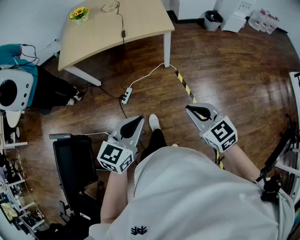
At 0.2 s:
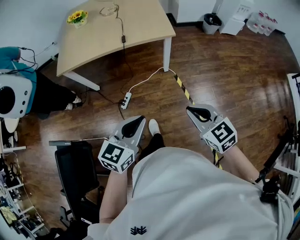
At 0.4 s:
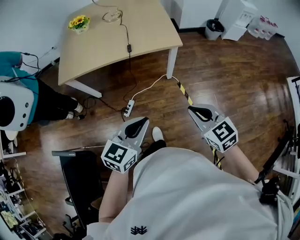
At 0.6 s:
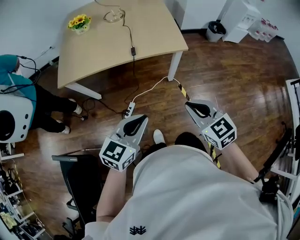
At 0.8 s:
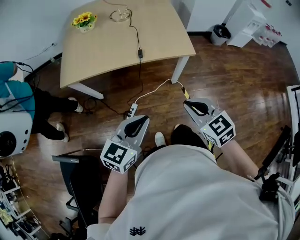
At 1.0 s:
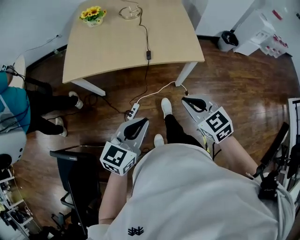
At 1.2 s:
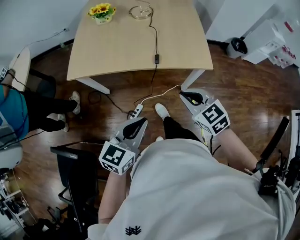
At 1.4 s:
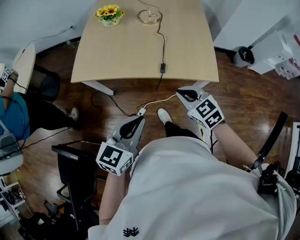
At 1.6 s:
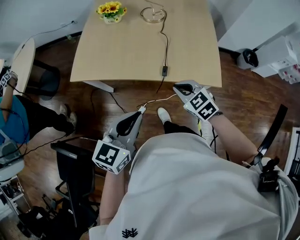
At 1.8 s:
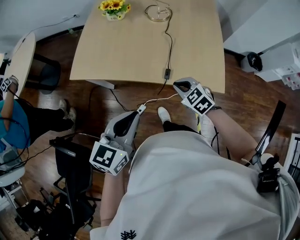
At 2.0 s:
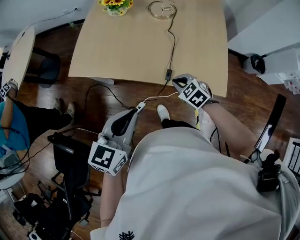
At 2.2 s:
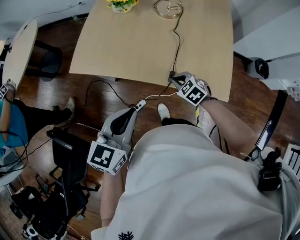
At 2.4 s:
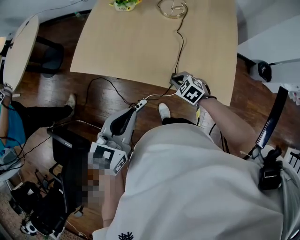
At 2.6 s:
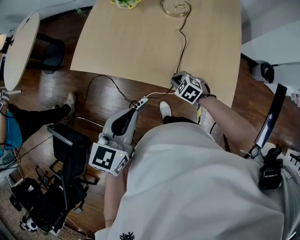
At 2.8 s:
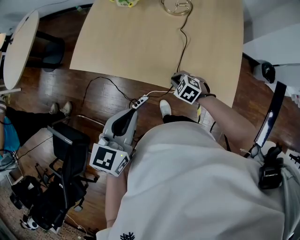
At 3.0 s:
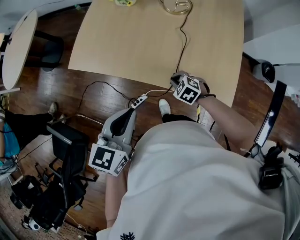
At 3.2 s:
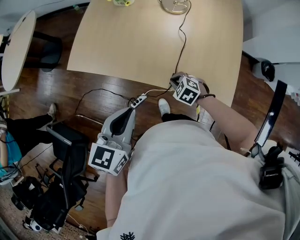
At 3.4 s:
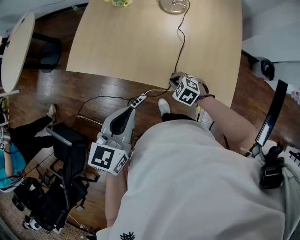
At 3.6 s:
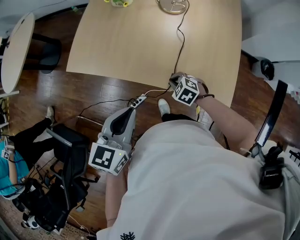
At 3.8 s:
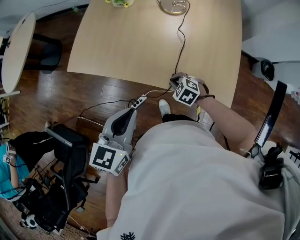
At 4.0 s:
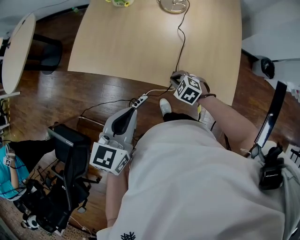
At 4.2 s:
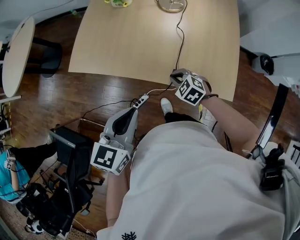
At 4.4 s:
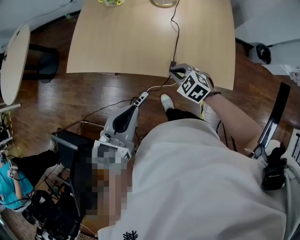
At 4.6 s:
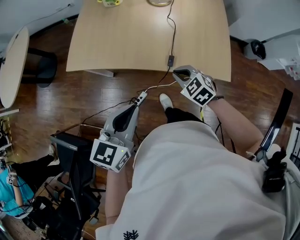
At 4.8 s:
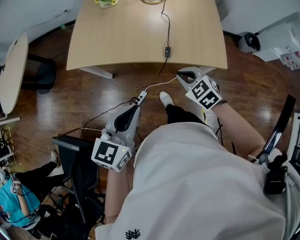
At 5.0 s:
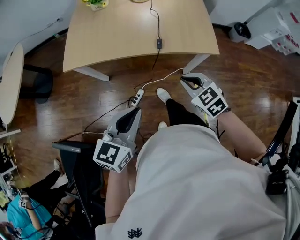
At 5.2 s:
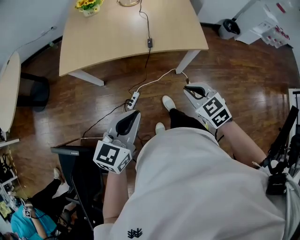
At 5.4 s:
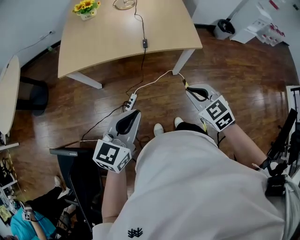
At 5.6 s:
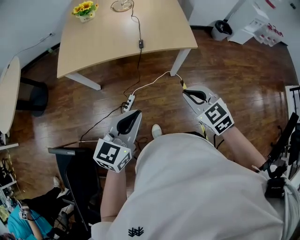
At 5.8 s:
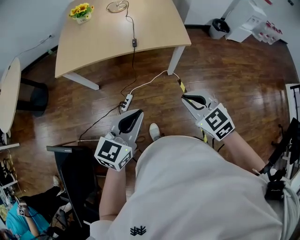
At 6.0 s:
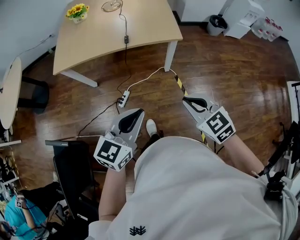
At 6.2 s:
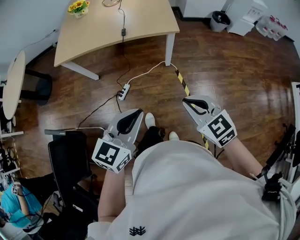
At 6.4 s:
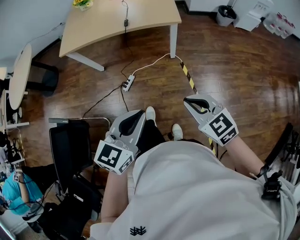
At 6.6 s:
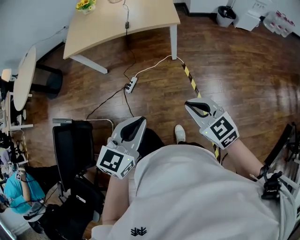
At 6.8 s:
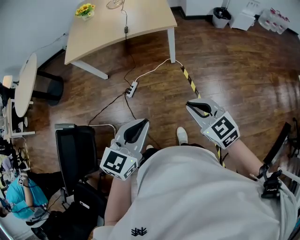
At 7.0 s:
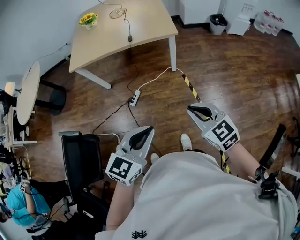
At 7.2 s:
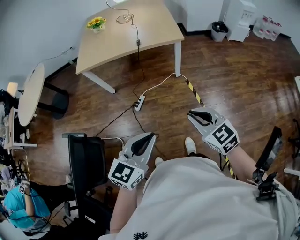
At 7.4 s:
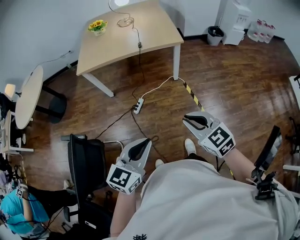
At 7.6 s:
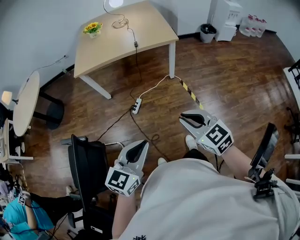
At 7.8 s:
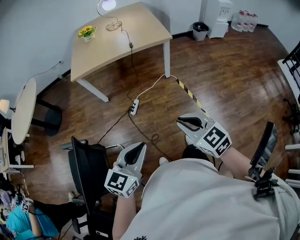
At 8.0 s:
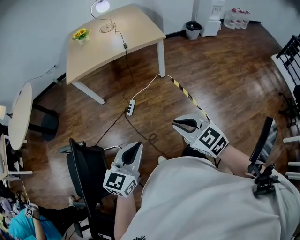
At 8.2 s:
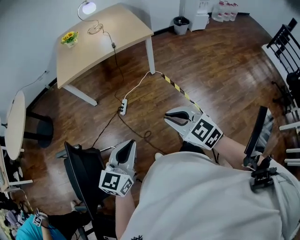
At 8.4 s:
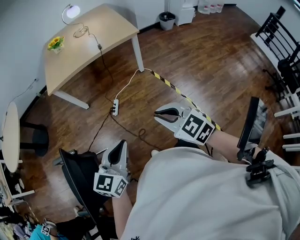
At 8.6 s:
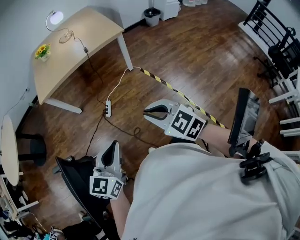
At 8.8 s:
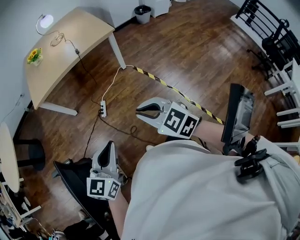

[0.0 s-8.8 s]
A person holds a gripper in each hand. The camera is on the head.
0.0 to 1.4 s: Both grippers move forward and to the left, some 40 cm.
1.4 to 3.0 s: The left gripper moves forward, roughly 15 cm, and turns by approximately 20 degrees, while the right gripper shifts approximately 25 cm downward and forward, and changes its angle by approximately 40 degrees.
3.0 to 4.4 s: The right gripper goes some 10 cm upward.
4.4 to 5.8 s: The right gripper is displaced backward and upward by approximately 40 cm, and turns by about 30 degrees. The left gripper is displaced backward by roughly 25 cm, and rotates some 30 degrees.
5.8 to 7.4 s: Both grippers travel together backward, about 30 cm.
7.4 to 8.8 s: The left gripper is displaced to the left by approximately 5 cm, while the right gripper goes about 10 cm to the left and backward.

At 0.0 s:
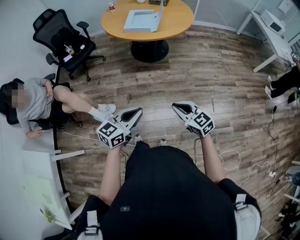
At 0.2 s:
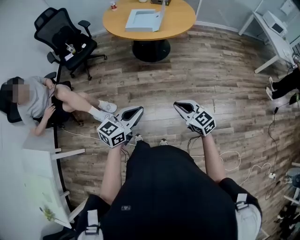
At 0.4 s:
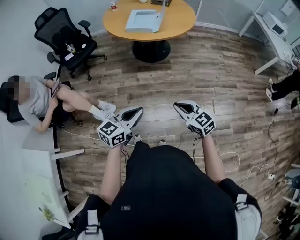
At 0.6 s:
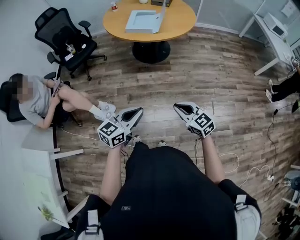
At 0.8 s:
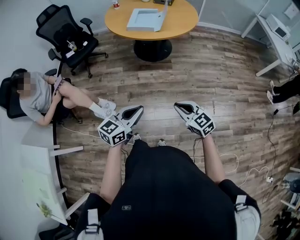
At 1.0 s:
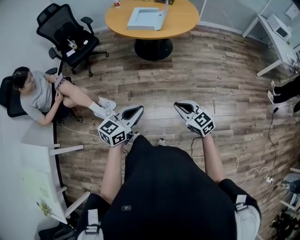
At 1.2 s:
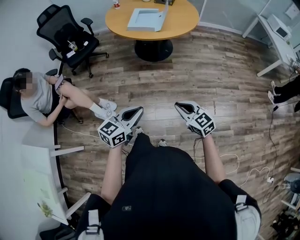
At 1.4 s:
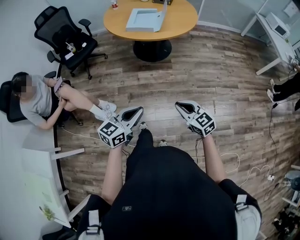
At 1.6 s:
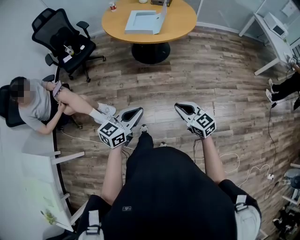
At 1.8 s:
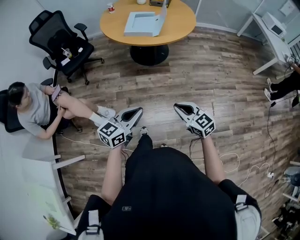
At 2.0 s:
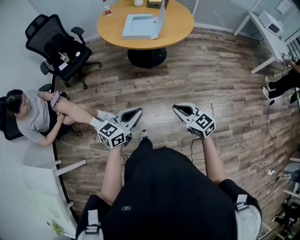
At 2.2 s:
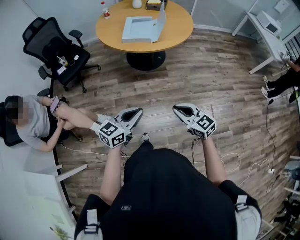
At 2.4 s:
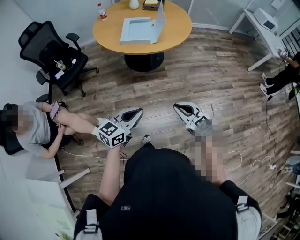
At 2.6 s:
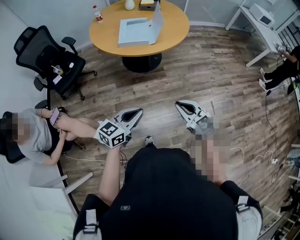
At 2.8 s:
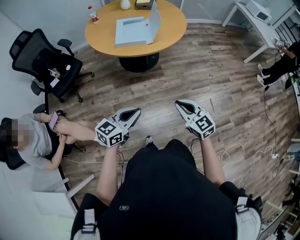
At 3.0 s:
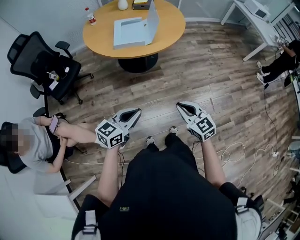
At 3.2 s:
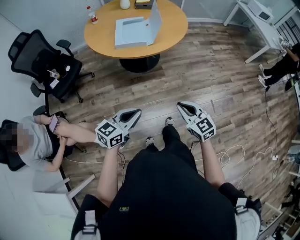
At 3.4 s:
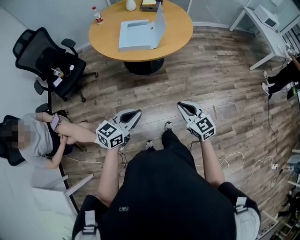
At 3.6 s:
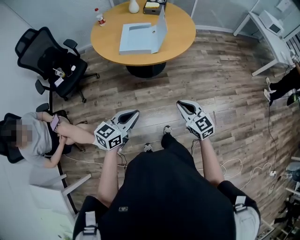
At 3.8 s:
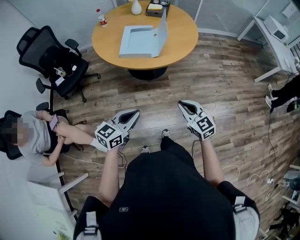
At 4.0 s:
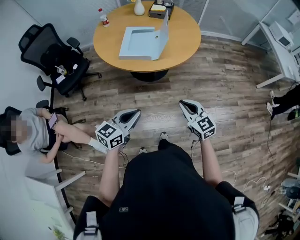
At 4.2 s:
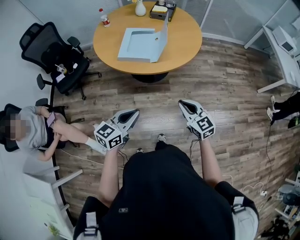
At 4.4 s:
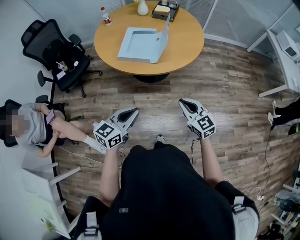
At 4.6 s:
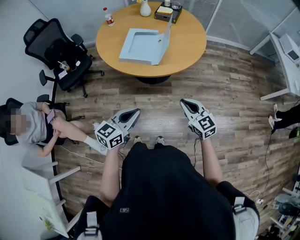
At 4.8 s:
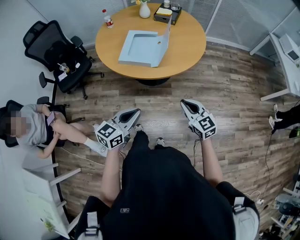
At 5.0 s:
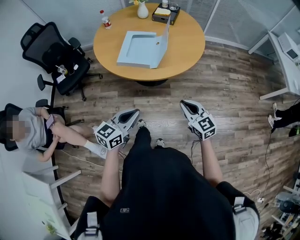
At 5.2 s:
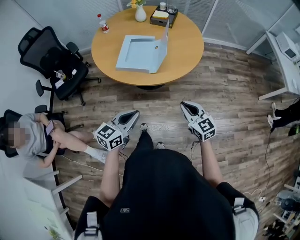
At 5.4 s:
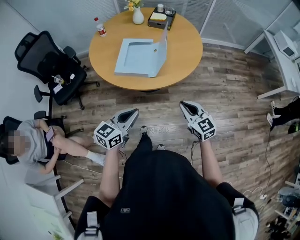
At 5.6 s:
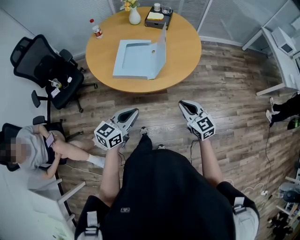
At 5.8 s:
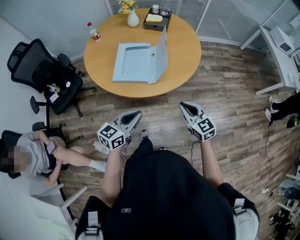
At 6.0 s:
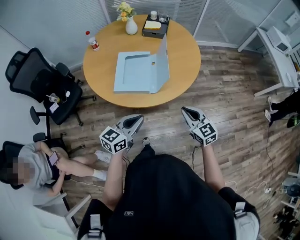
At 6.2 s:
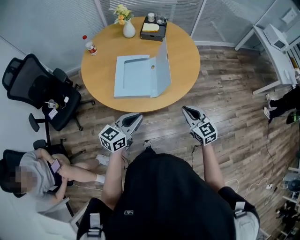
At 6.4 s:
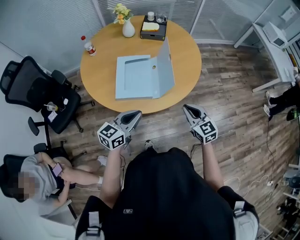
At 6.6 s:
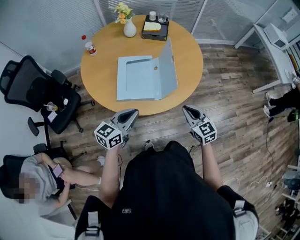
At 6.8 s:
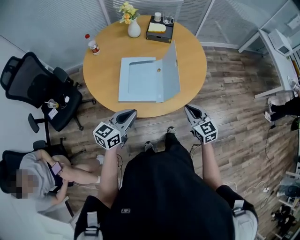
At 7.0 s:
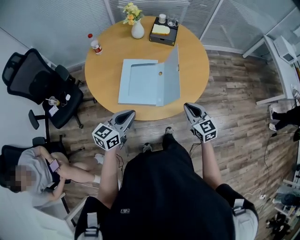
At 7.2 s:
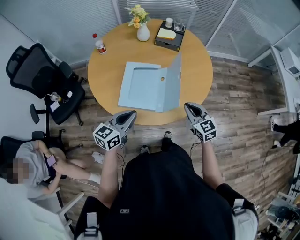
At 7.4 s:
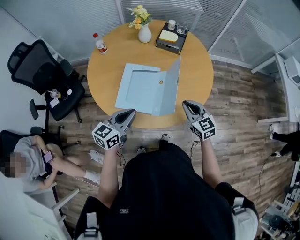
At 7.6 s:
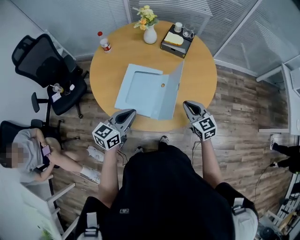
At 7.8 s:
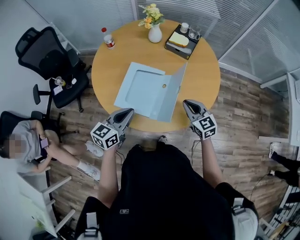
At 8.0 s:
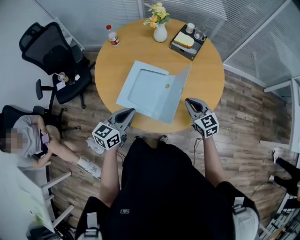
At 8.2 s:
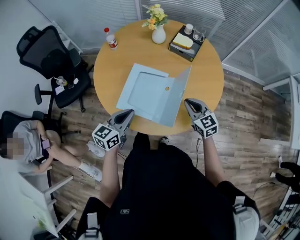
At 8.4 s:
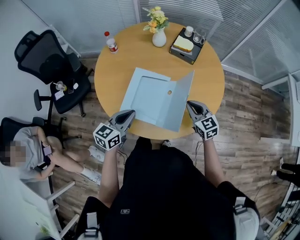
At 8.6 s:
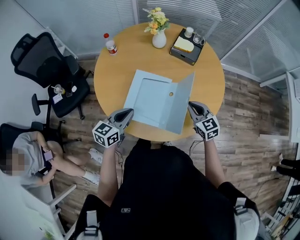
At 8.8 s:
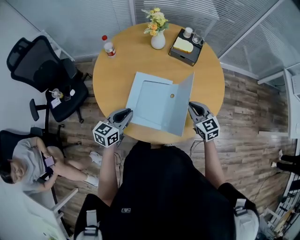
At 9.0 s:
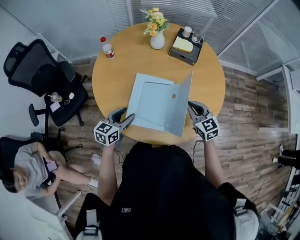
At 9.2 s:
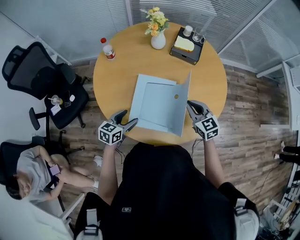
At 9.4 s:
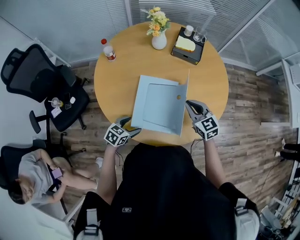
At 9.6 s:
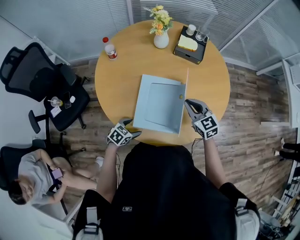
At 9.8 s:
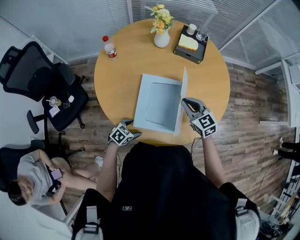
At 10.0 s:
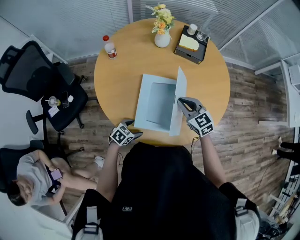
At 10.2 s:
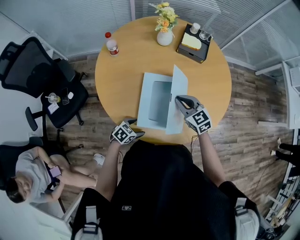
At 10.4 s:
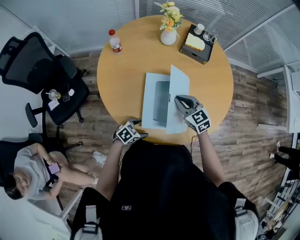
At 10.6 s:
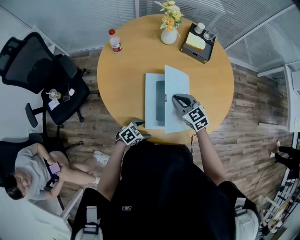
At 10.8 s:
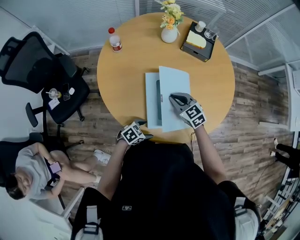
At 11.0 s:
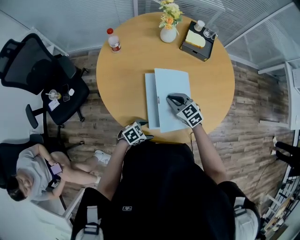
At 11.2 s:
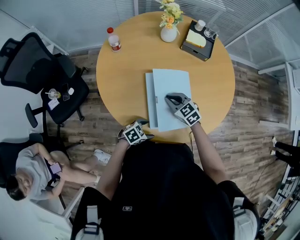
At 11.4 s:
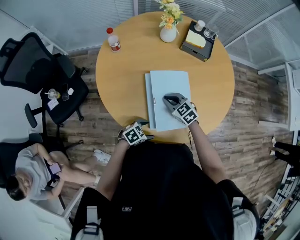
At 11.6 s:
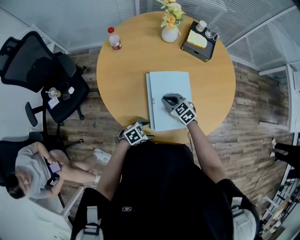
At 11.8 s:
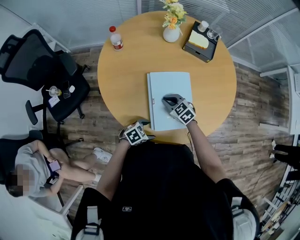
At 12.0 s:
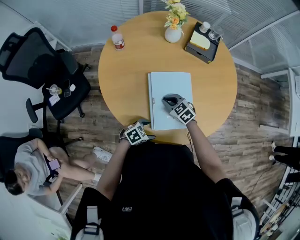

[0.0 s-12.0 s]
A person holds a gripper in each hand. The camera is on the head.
0.0 to 1.6 s: The left gripper is displaced forward by roughly 5 cm.
1.6 to 3.0 s: Both grippers move forward and to the left, approximately 15 cm.
3.0 to 4.4 s: The two grippers go some 20 cm forward and to the right.
4.4 to 6.0 s: Both grippers move forward, roughly 20 cm.
6.0 to 7.6 s: The grippers both shift forward by about 20 cm.
7.6 to 9.0 s: The right gripper is displaced forward and to the left by roughly 10 cm. The left gripper shifts some 20 cm to the left, forward and downward, and opens.
9.0 to 10.4 s: The right gripper is displaced to the left by approximately 15 cm. The left gripper goes approximately 20 cm downward and backward, turns by roughly 40 degrees, and opens.
10.4 to 12.0 s: The right gripper is displaced downward by about 10 cm.

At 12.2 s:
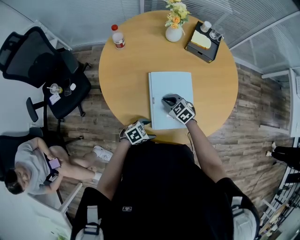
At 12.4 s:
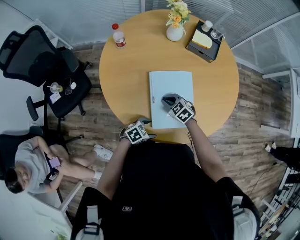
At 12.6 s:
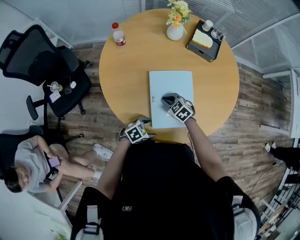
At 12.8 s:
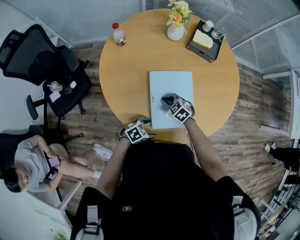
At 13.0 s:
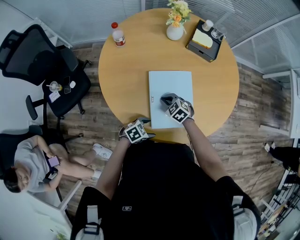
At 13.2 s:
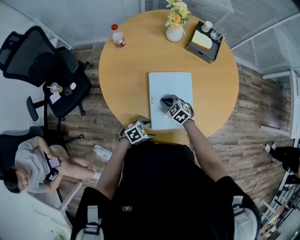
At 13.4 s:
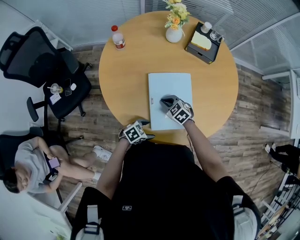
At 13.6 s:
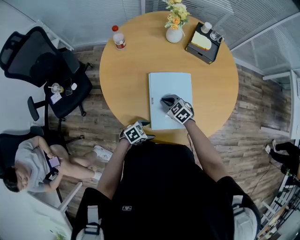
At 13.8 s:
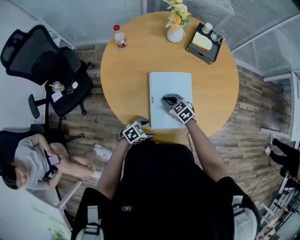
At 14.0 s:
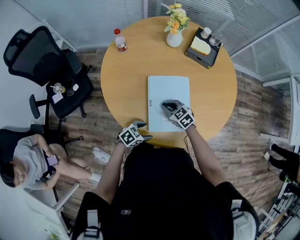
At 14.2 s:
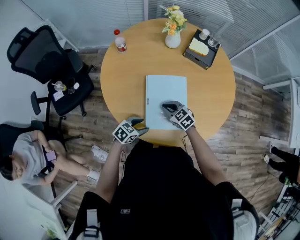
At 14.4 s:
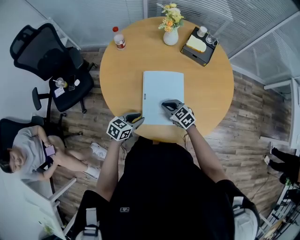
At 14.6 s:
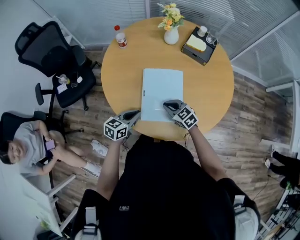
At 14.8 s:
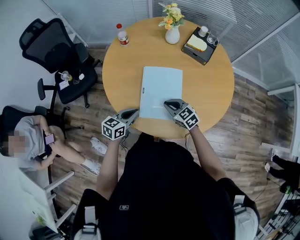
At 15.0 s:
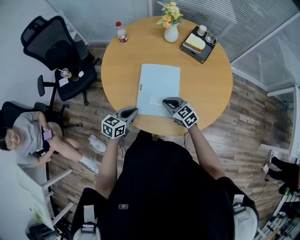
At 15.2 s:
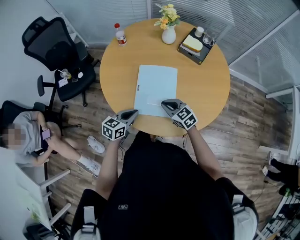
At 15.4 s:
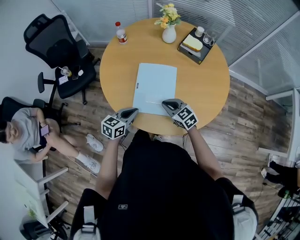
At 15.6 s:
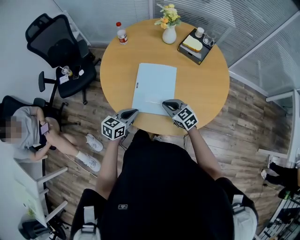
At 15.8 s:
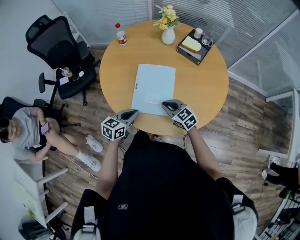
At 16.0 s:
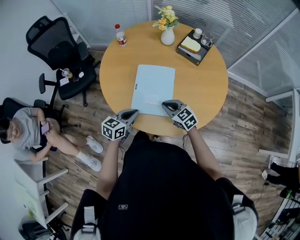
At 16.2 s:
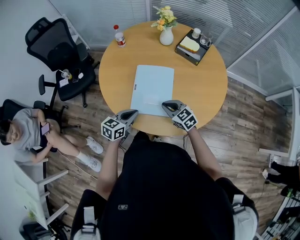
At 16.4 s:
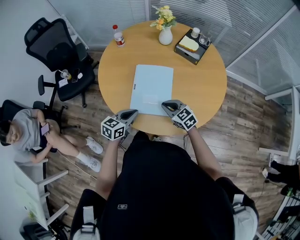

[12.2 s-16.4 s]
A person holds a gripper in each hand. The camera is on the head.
12.2 to 13.6 s: The grippers move only a little.
13.6 to 15.0 s: The left gripper travels upward by some 15 cm, turns by some 50 degrees, and closes its fingers. The right gripper shifts by approximately 15 cm.
15.0 to 16.4 s: The left gripper ends up about 5 cm from where it was.
